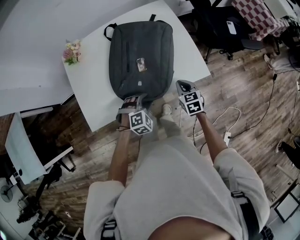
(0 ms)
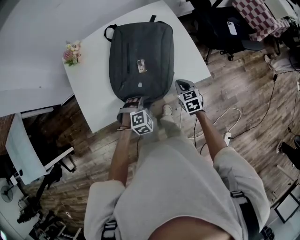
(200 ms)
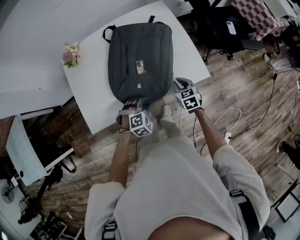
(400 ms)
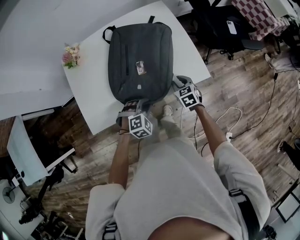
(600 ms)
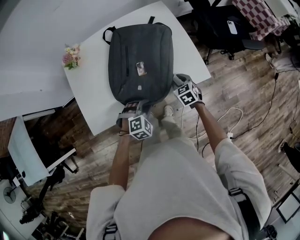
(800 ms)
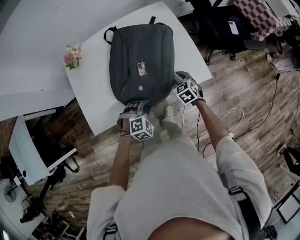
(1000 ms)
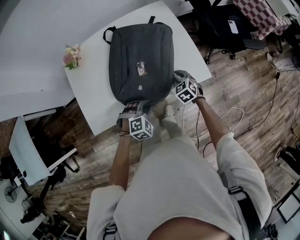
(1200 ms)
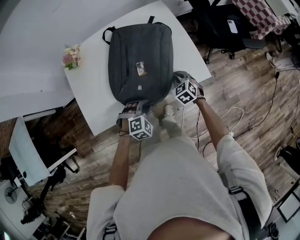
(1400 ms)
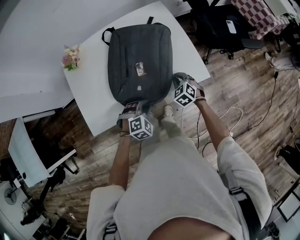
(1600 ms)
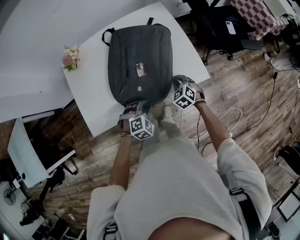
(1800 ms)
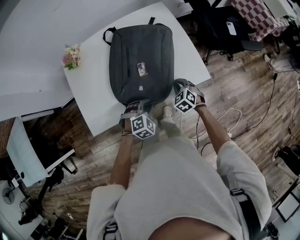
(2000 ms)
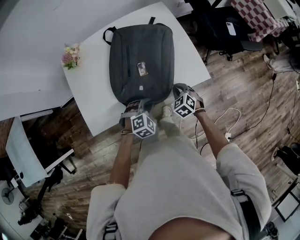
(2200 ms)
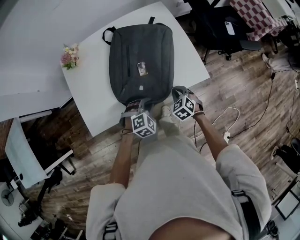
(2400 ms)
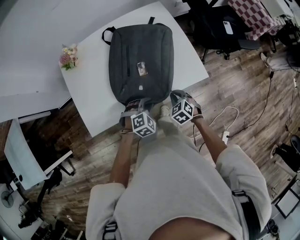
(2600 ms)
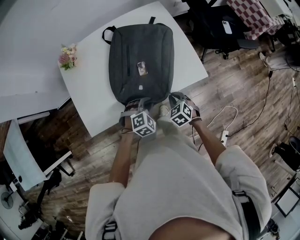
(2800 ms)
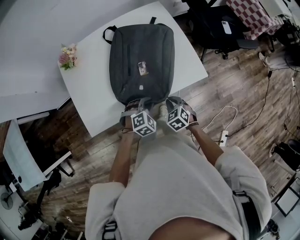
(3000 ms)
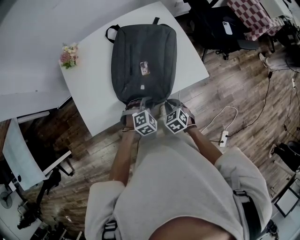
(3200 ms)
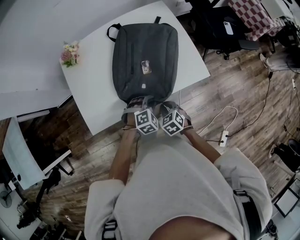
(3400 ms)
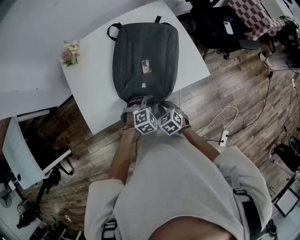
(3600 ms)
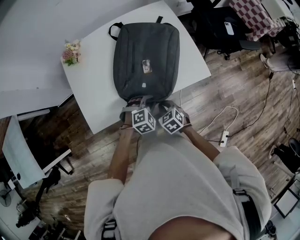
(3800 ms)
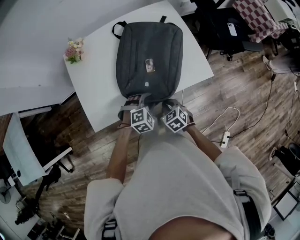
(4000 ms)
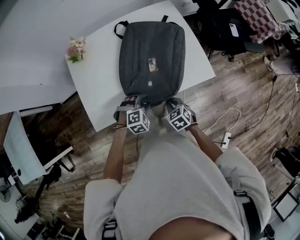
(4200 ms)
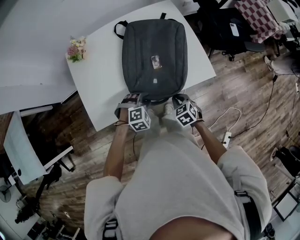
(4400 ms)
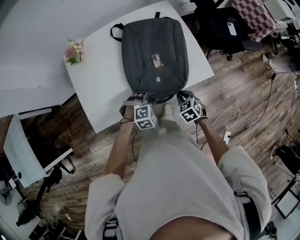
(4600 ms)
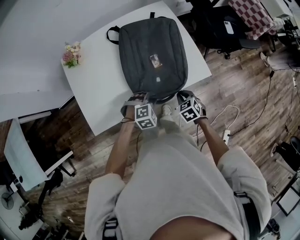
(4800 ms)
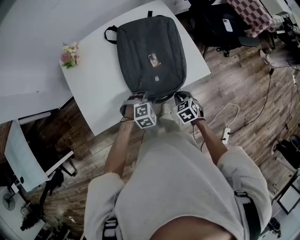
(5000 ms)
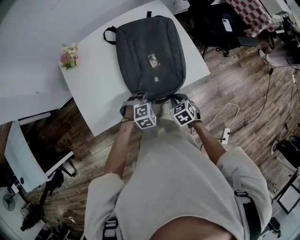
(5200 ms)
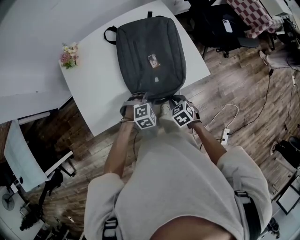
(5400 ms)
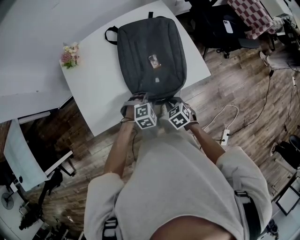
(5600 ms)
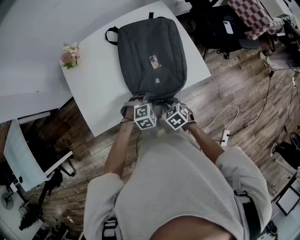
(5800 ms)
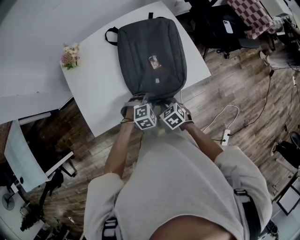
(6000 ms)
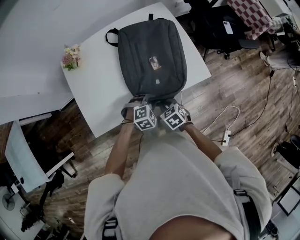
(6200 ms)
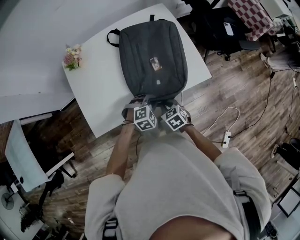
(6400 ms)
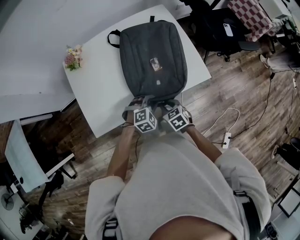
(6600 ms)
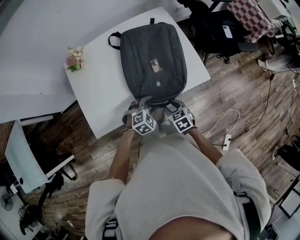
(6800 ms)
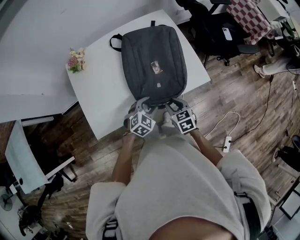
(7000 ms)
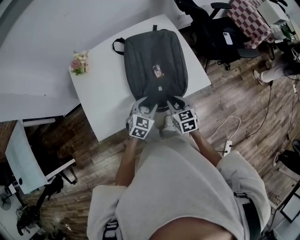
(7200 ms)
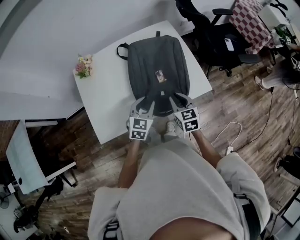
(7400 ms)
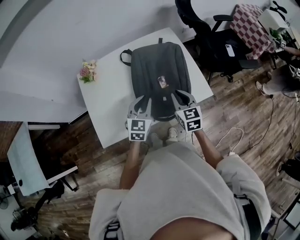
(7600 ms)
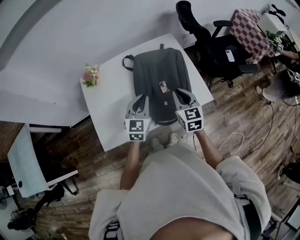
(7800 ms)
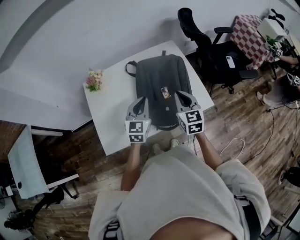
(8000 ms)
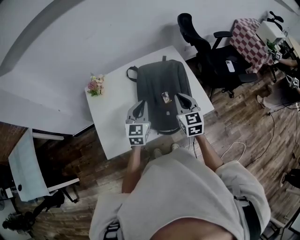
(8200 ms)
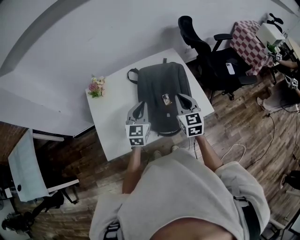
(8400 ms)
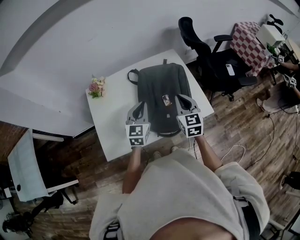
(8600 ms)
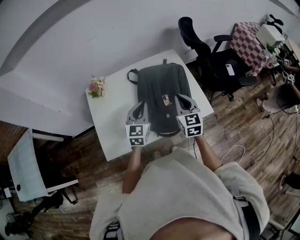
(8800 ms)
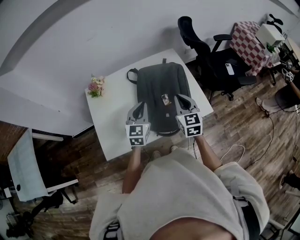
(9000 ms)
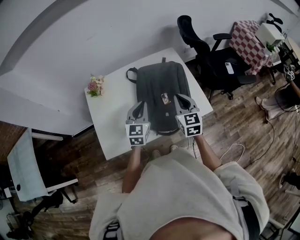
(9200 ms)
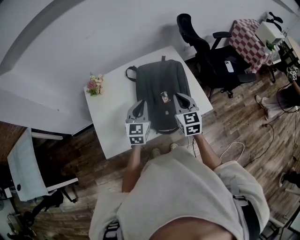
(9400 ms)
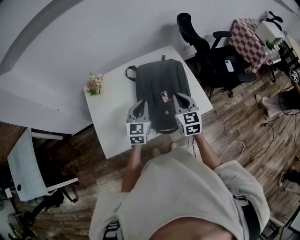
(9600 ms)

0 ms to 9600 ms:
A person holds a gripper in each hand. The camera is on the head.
0 ms to 1600 ms: The left gripper closes. Meanwhile the right gripper goes about 5 cm forward, turns by roughly 30 degrees, and opens, then closes once more.
1600 ms to 3200 ms: The right gripper travels backward by approximately 15 cm.
3200 ms to 4800 ms: The right gripper ends up about 5 cm from where it was, while the left gripper opens, then closes again.
4800 ms to 6400 ms: The right gripper goes roughly 10 cm to the left.
6400 ms to 8000 ms: The right gripper moves upward and forward, roughly 25 cm, points its fingers about 40 degrees further upward, and opens and closes again. The left gripper moves upward, forward and to the left, about 25 cm, angles its fingers upward, by approximately 40 degrees, and opens and closes again.
8000 ms to 9600 ms: The grippers stay close to where they were, moving slightly.

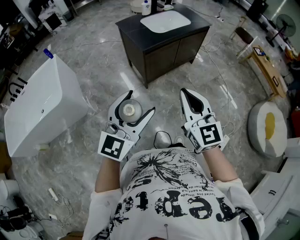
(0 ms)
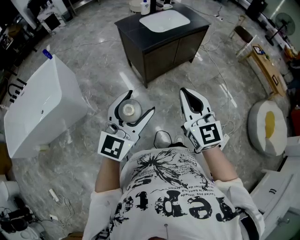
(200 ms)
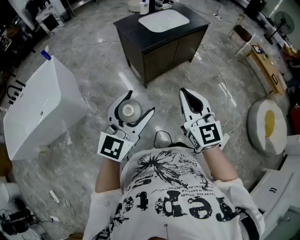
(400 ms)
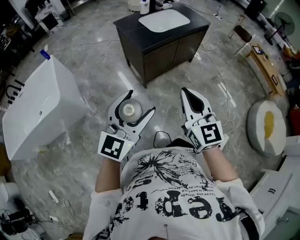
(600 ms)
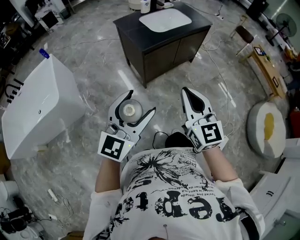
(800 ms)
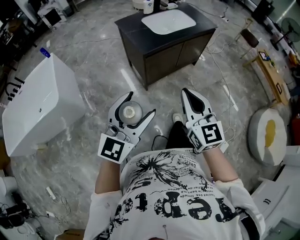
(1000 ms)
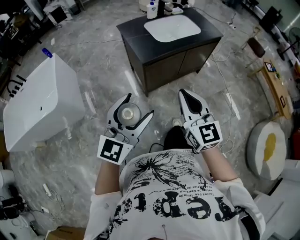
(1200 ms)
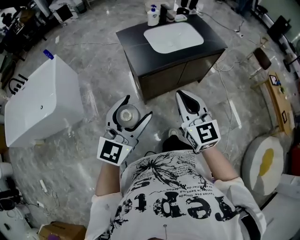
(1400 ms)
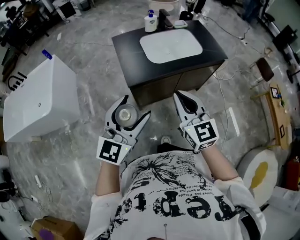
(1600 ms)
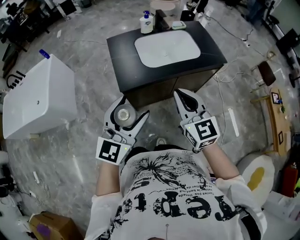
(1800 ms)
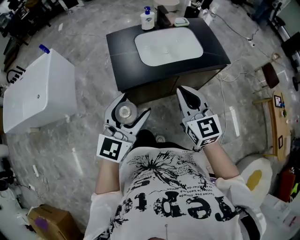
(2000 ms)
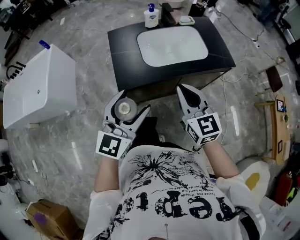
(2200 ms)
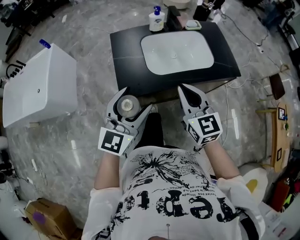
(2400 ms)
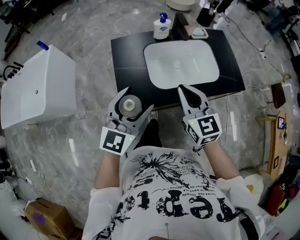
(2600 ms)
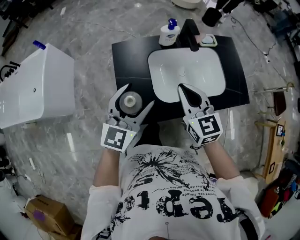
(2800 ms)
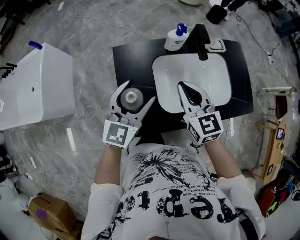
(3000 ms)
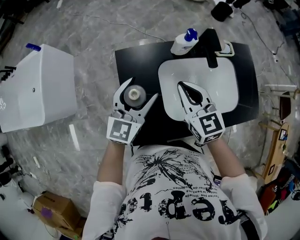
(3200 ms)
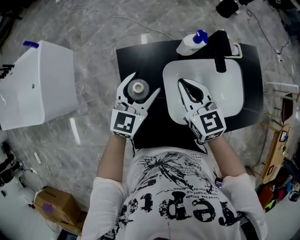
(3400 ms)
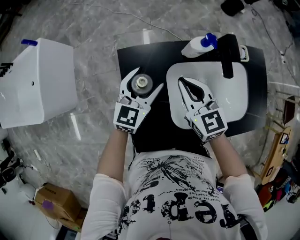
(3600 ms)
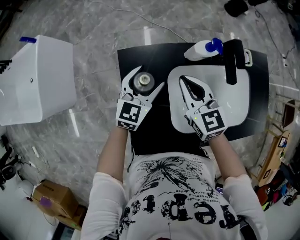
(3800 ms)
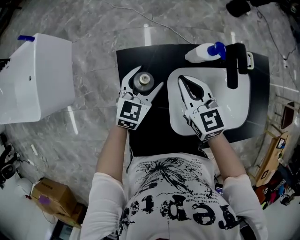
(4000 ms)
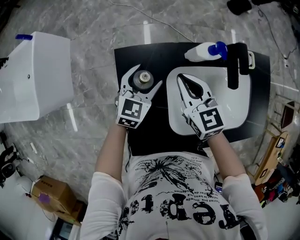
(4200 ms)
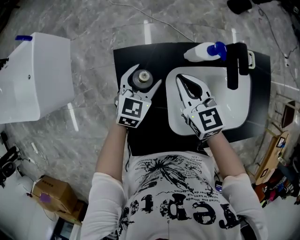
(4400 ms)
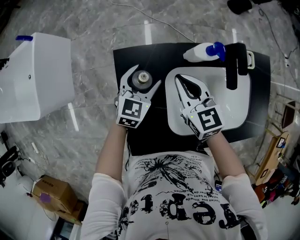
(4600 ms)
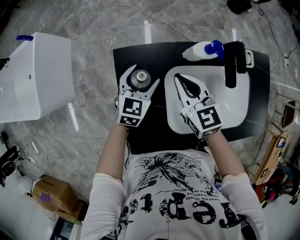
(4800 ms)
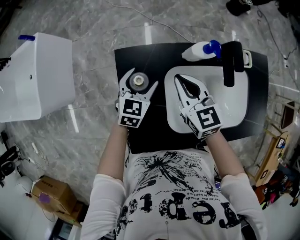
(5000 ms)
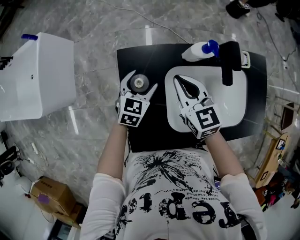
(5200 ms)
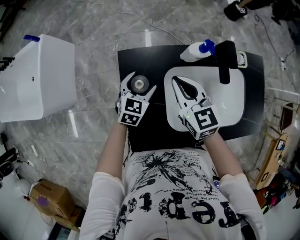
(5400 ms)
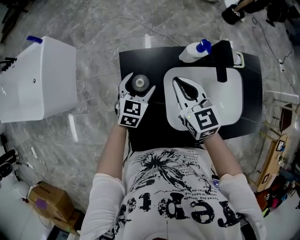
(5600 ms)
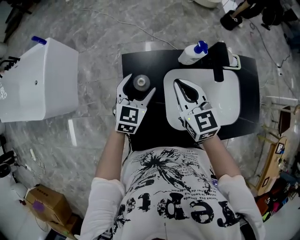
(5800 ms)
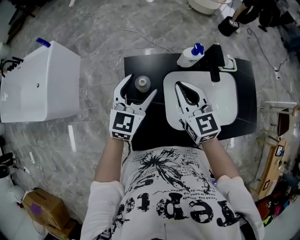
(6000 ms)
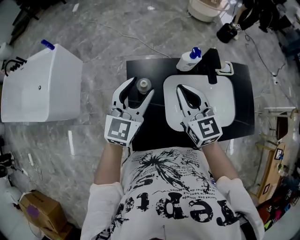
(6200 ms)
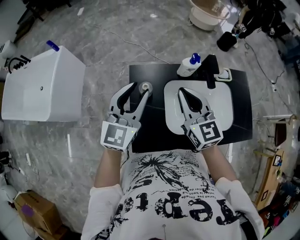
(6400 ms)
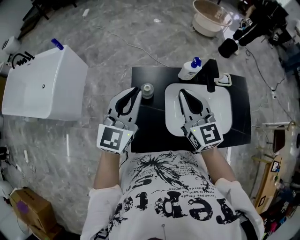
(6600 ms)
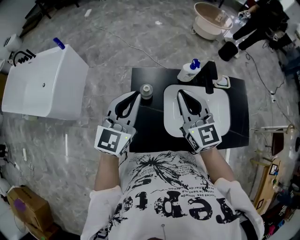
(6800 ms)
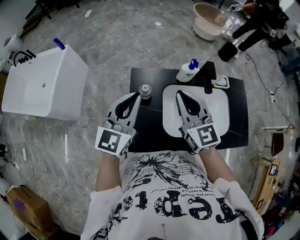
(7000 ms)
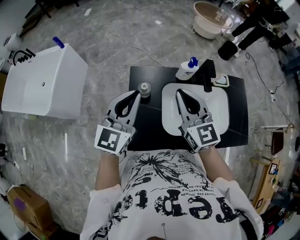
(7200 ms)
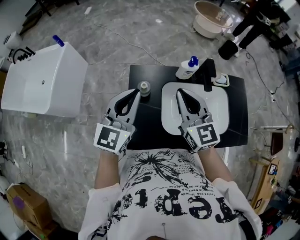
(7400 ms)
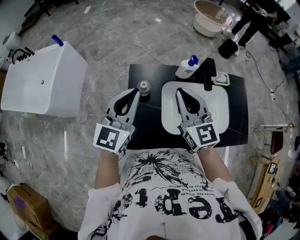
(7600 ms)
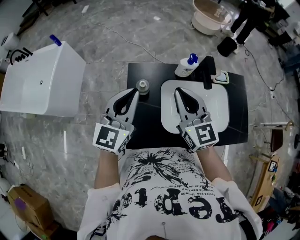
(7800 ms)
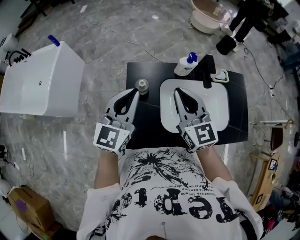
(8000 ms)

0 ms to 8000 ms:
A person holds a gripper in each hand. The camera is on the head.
0 ms to 1600 ms: The two grippers travel together, forward, about 40 cm.
1600 ms to 3200 ms: Both grippers are carried forward, some 60 cm. The right gripper turns by roughly 20 degrees.
3200 ms to 4800 ms: The right gripper is displaced forward and downward by roughly 15 cm. The left gripper travels downward and forward by some 20 cm, and swivels approximately 20 degrees.
4800 ms to 6400 ms: Both grippers move upward and backward, approximately 25 cm. The left gripper turns by roughly 30 degrees, and closes.
6400 ms to 8000 ms: The left gripper closes up.

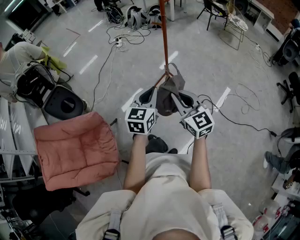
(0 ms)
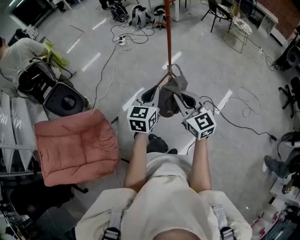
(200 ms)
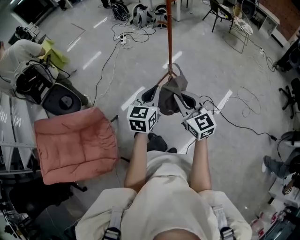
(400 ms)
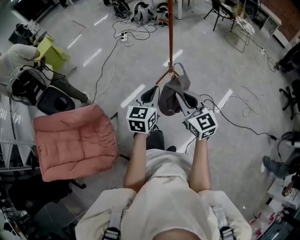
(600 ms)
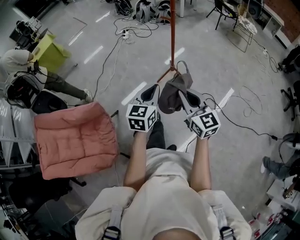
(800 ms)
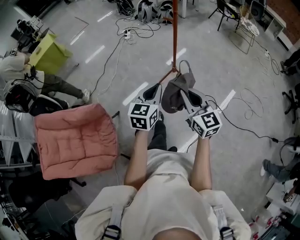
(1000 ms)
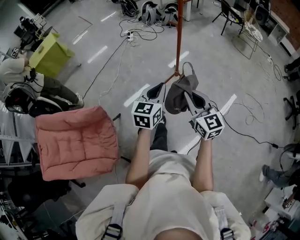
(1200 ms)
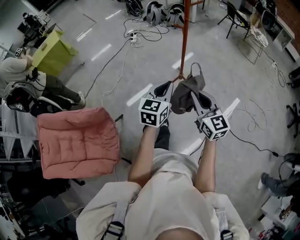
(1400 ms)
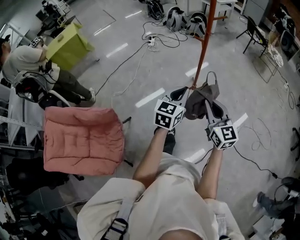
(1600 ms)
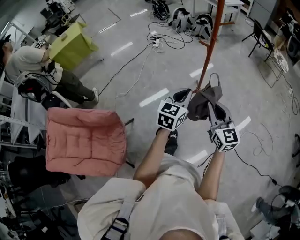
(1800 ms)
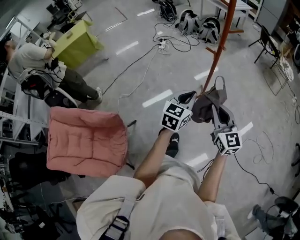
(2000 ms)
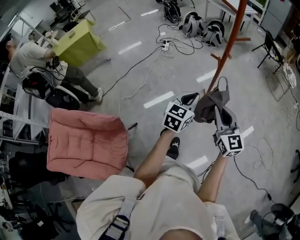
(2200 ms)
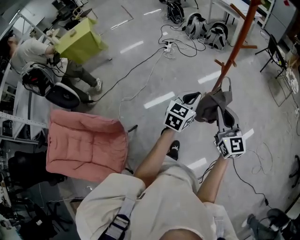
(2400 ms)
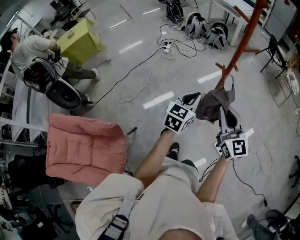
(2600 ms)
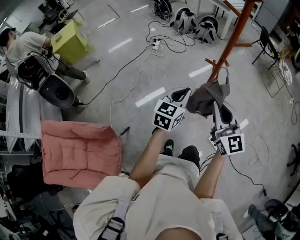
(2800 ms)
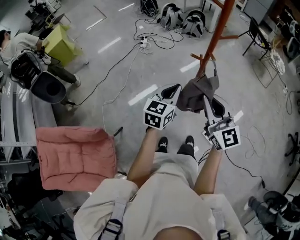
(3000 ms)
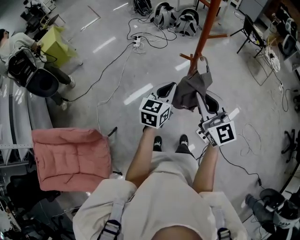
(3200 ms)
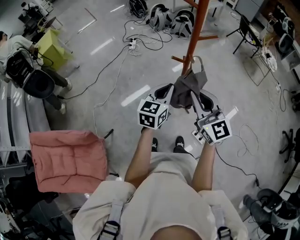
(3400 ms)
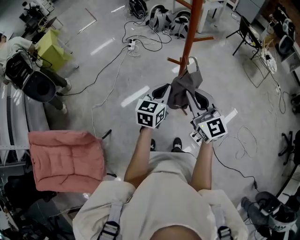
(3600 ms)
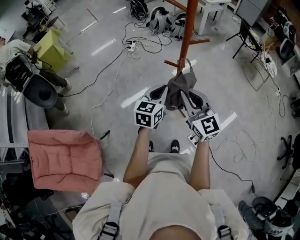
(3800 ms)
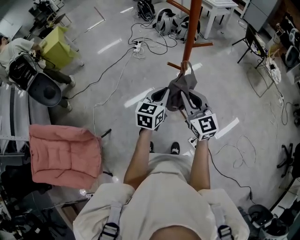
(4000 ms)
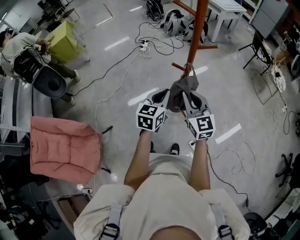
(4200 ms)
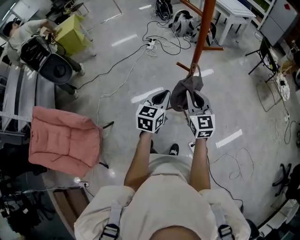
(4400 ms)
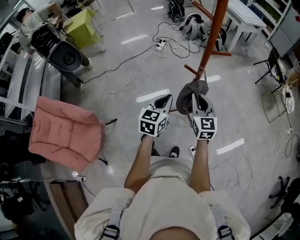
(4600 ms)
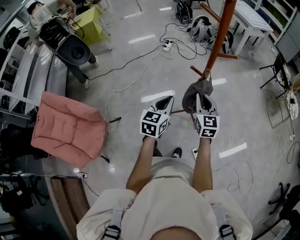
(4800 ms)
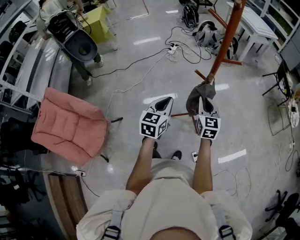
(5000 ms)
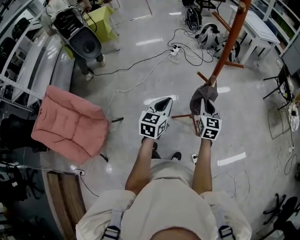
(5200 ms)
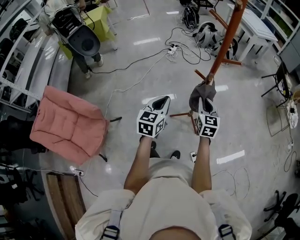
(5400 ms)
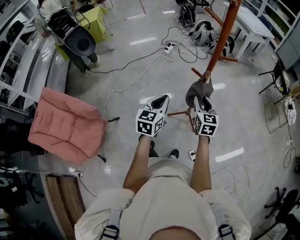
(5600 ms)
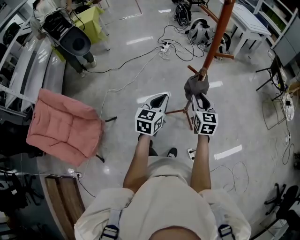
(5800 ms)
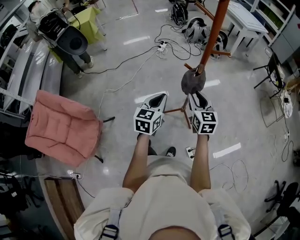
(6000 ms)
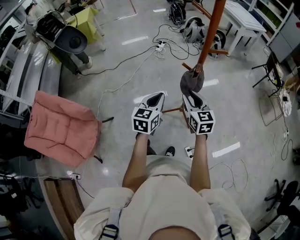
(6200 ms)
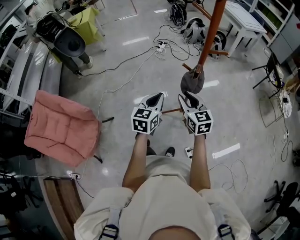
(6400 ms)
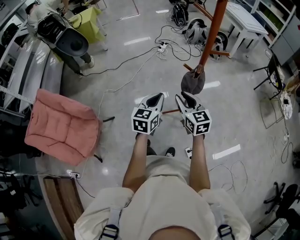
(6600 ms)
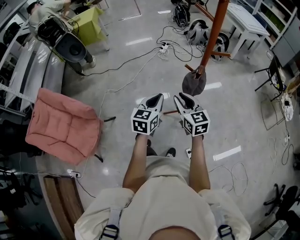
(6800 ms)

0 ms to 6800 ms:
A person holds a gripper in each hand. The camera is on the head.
0 ms to 1400 ms: Both grippers travel together forward, approximately 10 cm.
1400 ms to 2800 ms: The two grippers go roughly 20 cm forward.
2800 ms to 4000 ms: The left gripper moves to the right, some 10 cm. Meanwhile the right gripper travels forward and to the right by approximately 10 cm.
4000 ms to 5400 ms: The right gripper travels downward and forward by roughly 10 cm. Meanwhile the left gripper moves to the left, some 10 cm.
5400 ms to 6800 ms: The right gripper moves to the left, about 10 cm, and changes its angle by approximately 20 degrees.
